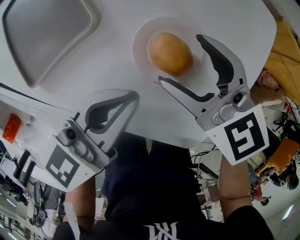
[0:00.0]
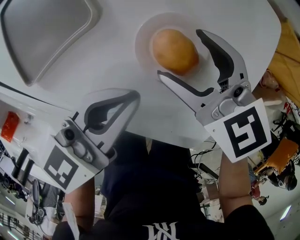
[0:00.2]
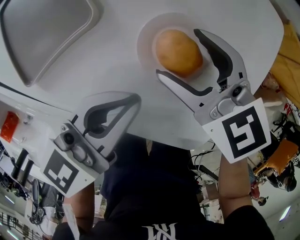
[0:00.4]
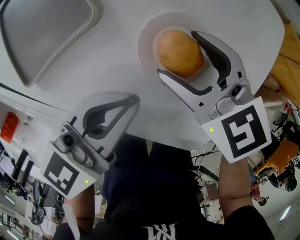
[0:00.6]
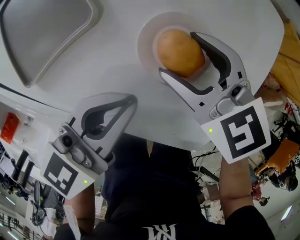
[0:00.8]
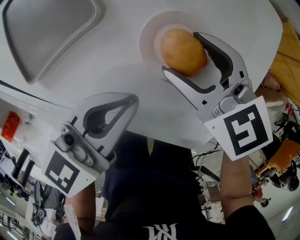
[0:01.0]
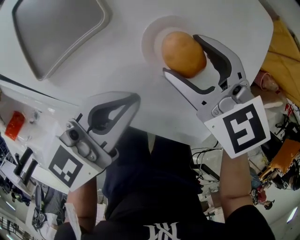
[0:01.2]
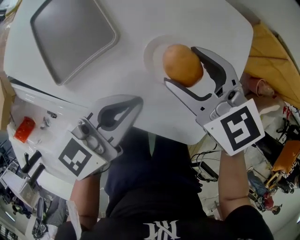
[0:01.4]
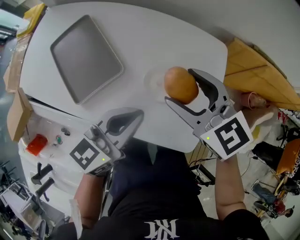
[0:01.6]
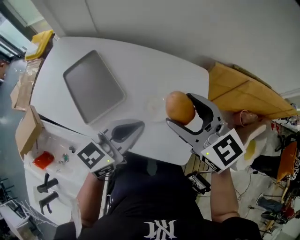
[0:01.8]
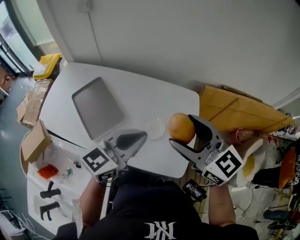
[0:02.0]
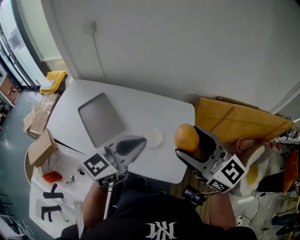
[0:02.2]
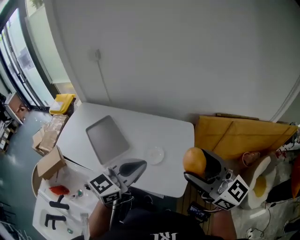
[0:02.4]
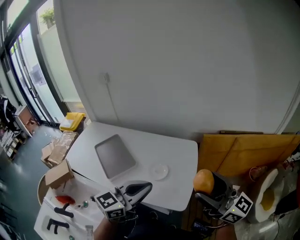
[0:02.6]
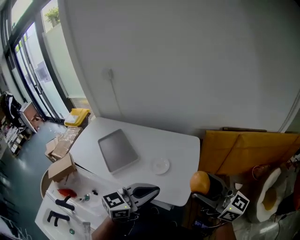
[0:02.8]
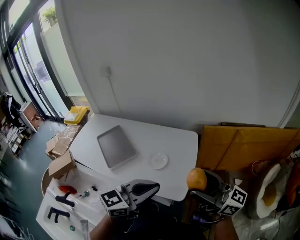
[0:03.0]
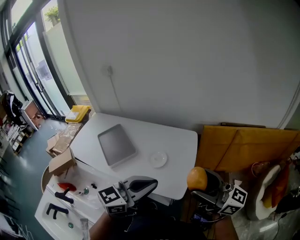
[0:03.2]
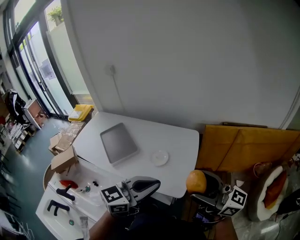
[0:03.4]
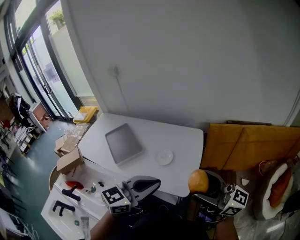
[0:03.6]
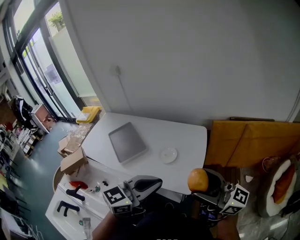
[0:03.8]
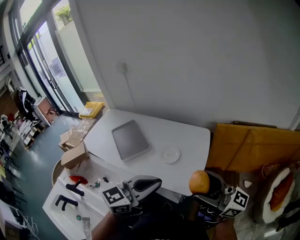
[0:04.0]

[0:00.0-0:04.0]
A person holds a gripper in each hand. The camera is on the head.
0:00.0 to 0:01.4: The grippers both shift upward by about 10 cm.
0:01.4 to 0:02.6: The right gripper goes about 50 cm upward, backward and to the right, and points its fingers about 50 degrees further upward, while the left gripper moves upward and backward, some 35 cm, and swivels about 20 degrees.
0:02.6 to 0:04.0: Both grippers travel together backward, some 10 cm. The right gripper changes its angle by some 20 degrees.

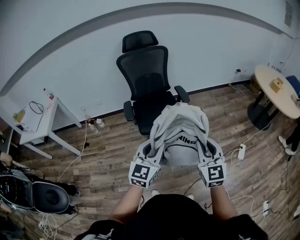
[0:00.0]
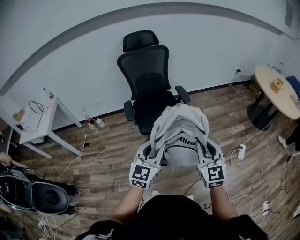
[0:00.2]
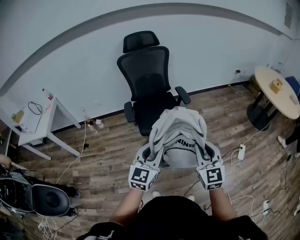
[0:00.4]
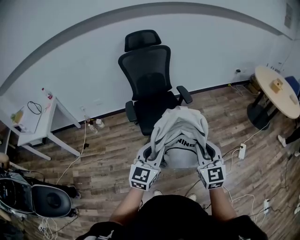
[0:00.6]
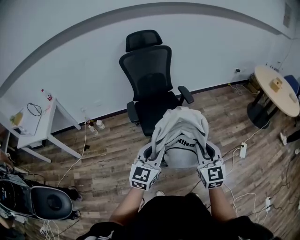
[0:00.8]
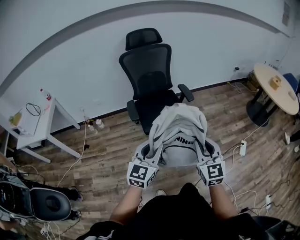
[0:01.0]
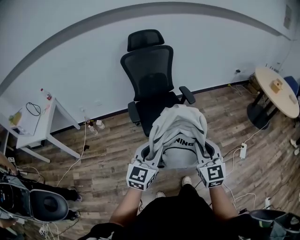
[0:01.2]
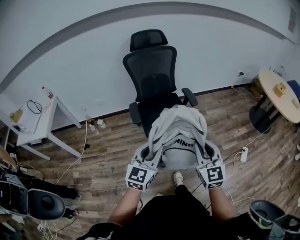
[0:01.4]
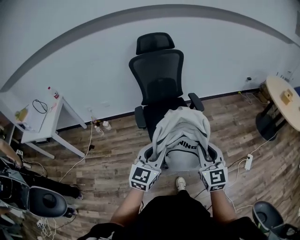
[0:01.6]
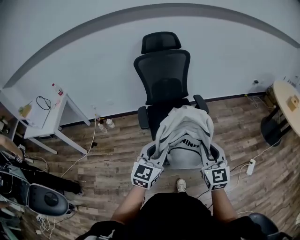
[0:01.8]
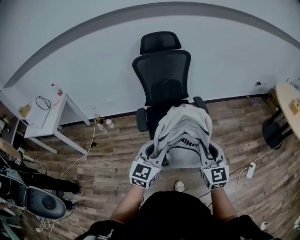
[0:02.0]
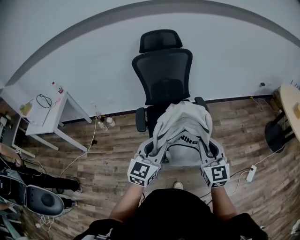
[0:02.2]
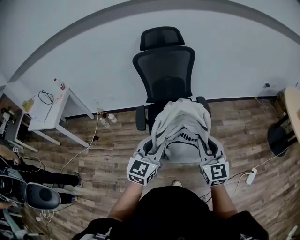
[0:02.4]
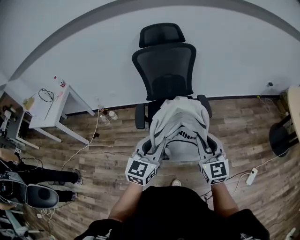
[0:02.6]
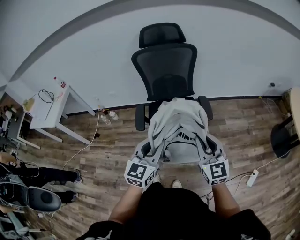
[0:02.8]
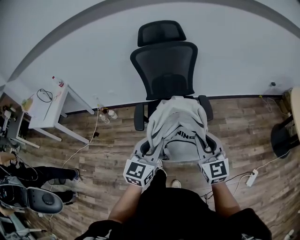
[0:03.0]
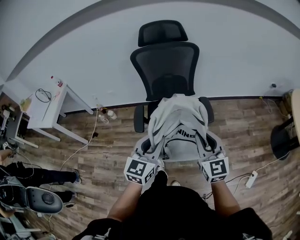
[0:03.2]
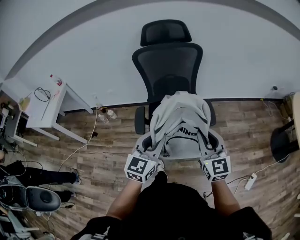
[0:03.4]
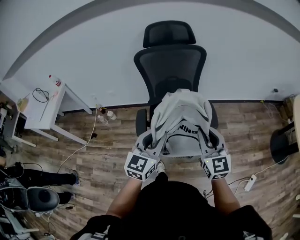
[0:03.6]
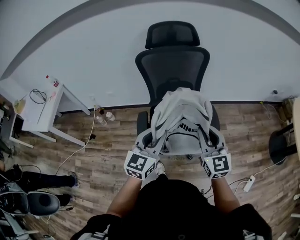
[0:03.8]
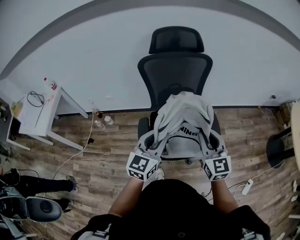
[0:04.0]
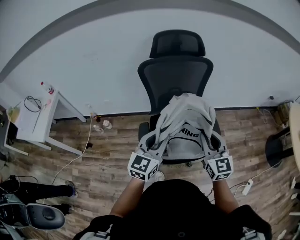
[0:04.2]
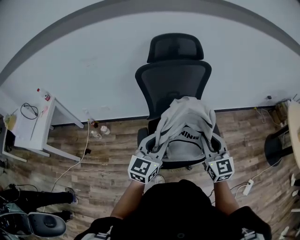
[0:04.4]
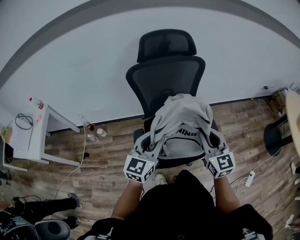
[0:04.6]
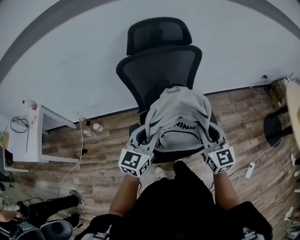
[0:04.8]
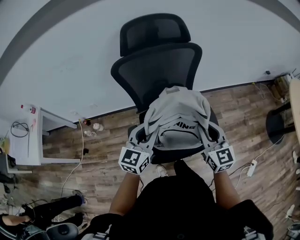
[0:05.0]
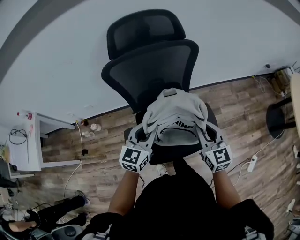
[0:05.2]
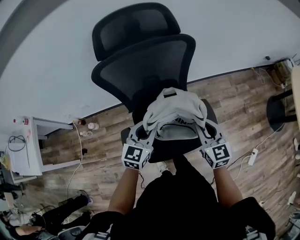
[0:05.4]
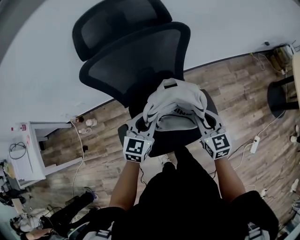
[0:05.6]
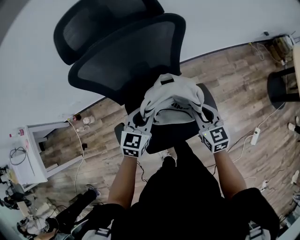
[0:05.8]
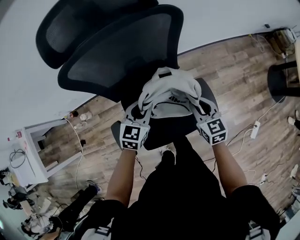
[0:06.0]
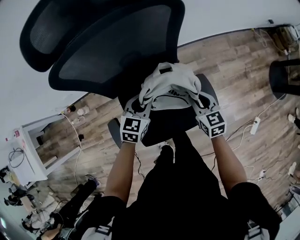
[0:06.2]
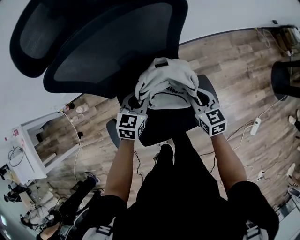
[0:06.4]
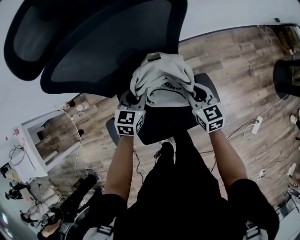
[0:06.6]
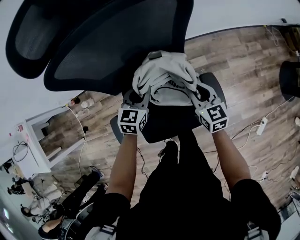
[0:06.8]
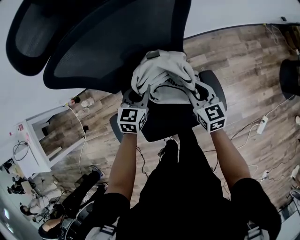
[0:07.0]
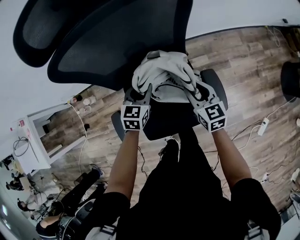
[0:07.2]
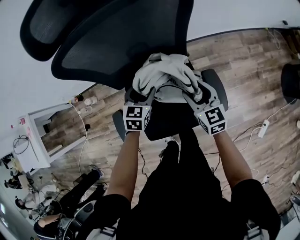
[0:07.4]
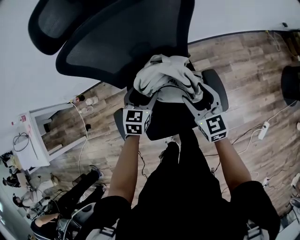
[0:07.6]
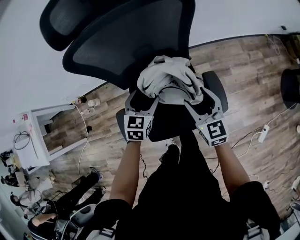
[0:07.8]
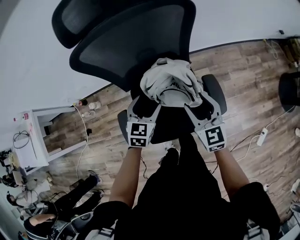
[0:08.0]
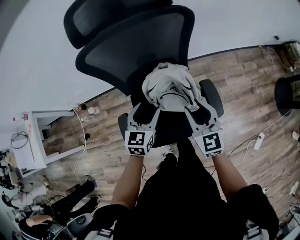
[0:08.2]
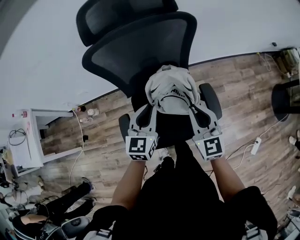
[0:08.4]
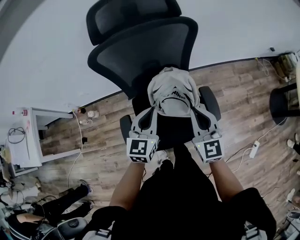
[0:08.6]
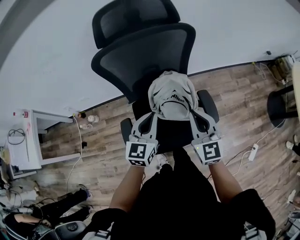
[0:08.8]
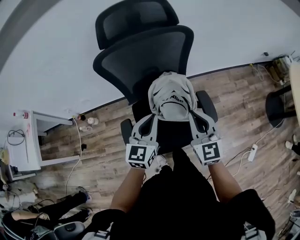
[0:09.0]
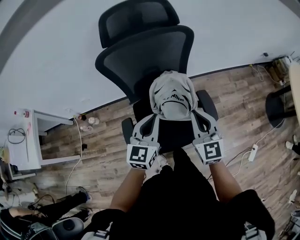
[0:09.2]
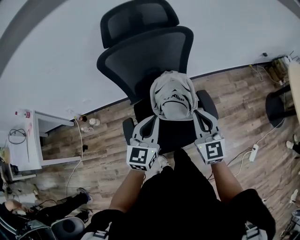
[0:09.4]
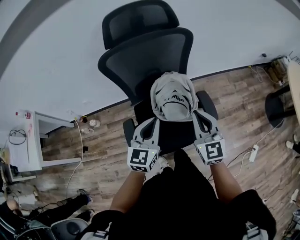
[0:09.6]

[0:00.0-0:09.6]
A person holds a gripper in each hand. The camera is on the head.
0:00.0 to 0:01.6: The grippers both shift to the left and forward by roughly 10 cm.
0:01.6 to 0:03.2: Both grippers travel together forward, roughly 20 cm.
0:03.2 to 0:04.8: The left gripper goes about 25 cm forward and to the left; the right gripper shifts about 20 cm forward.
0:04.8 to 0:06.4: Both grippers travel together downward and forward, roughly 35 cm. The right gripper changes its angle by some 30 degrees. Meanwhile the left gripper swivels roughly 30 degrees.
0:06.4 to 0:08.0: The right gripper shifts some 15 cm upward, backward and to the left, and opens, while the left gripper goes some 5 cm backward, and opens up.
0:08.0 to 0:09.6: Both grippers move upward and backward, approximately 15 cm. The right gripper closes its fingers, while the left gripper swivels about 20 degrees, and closes its fingers.

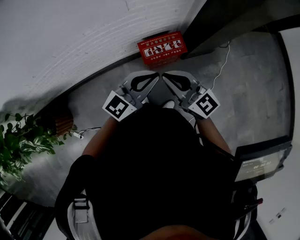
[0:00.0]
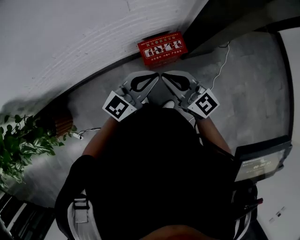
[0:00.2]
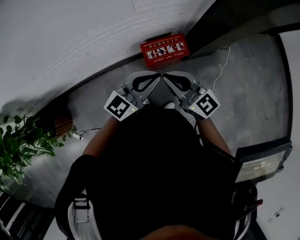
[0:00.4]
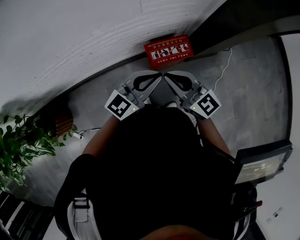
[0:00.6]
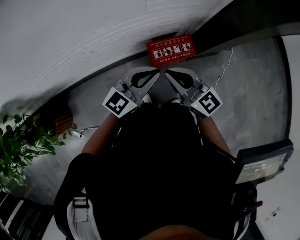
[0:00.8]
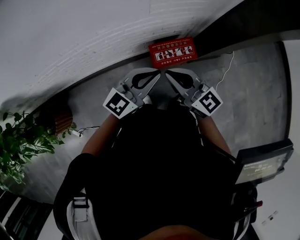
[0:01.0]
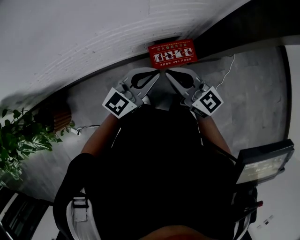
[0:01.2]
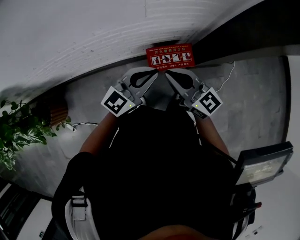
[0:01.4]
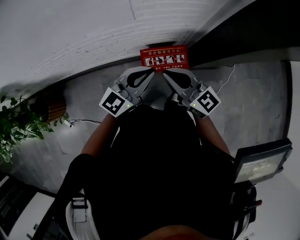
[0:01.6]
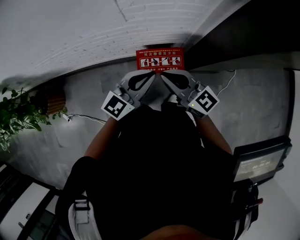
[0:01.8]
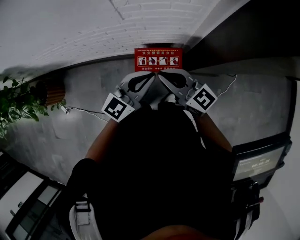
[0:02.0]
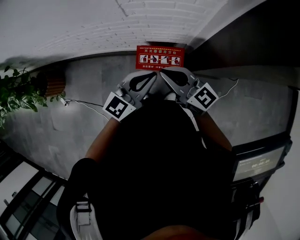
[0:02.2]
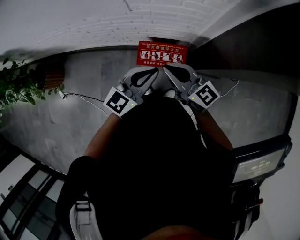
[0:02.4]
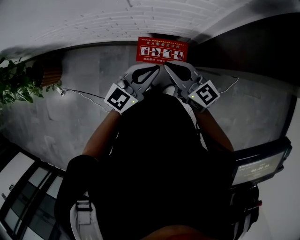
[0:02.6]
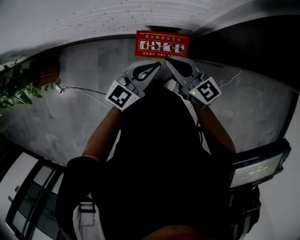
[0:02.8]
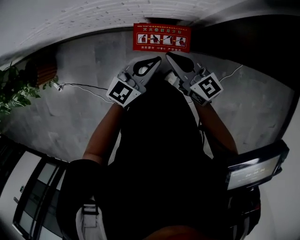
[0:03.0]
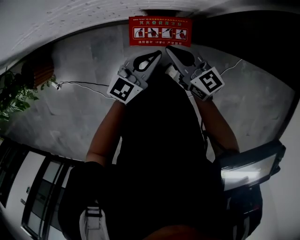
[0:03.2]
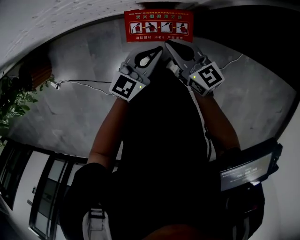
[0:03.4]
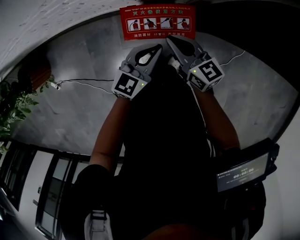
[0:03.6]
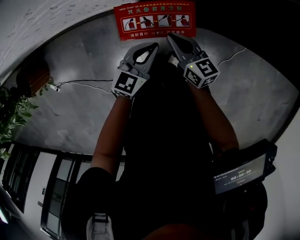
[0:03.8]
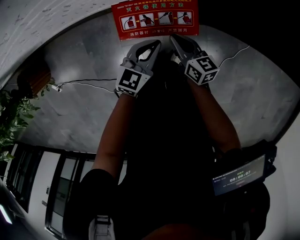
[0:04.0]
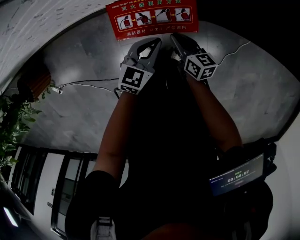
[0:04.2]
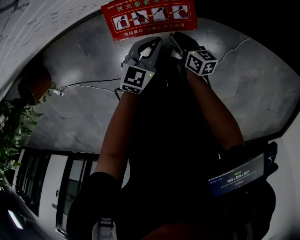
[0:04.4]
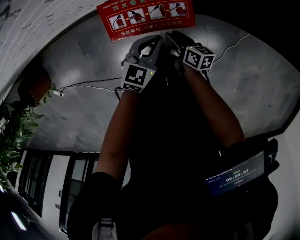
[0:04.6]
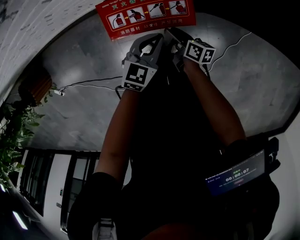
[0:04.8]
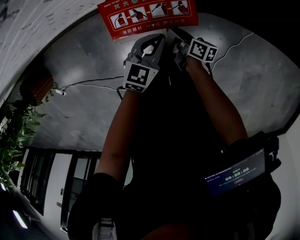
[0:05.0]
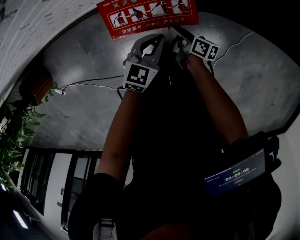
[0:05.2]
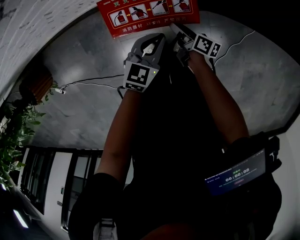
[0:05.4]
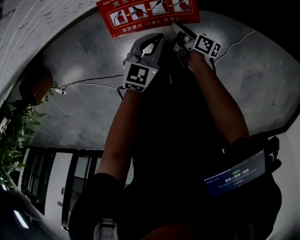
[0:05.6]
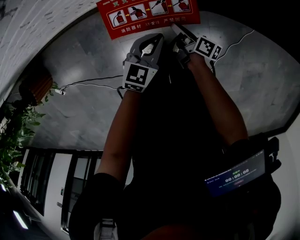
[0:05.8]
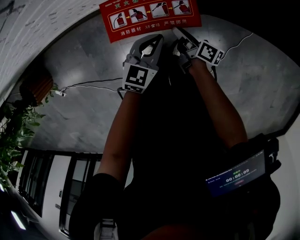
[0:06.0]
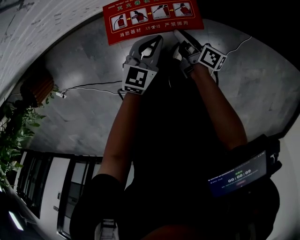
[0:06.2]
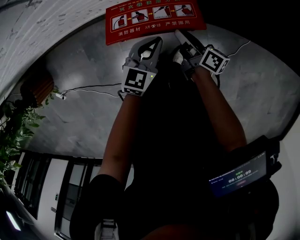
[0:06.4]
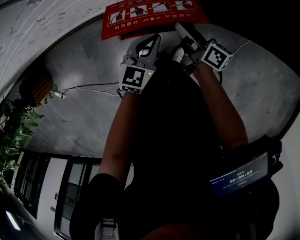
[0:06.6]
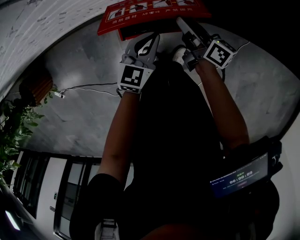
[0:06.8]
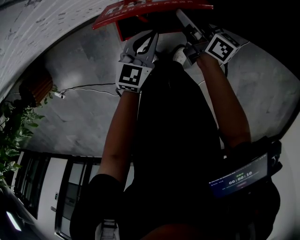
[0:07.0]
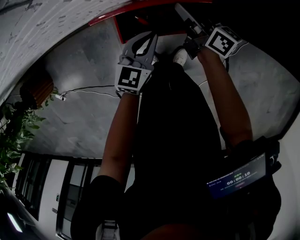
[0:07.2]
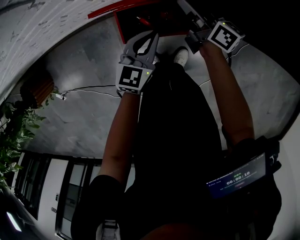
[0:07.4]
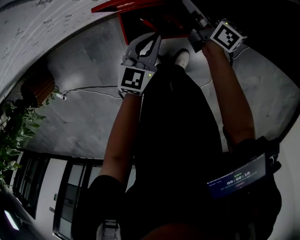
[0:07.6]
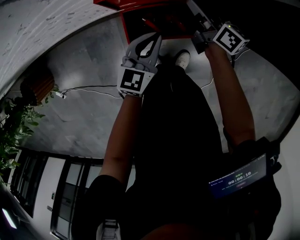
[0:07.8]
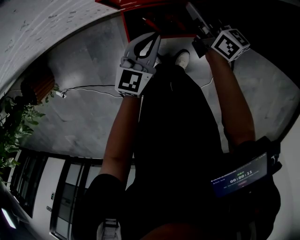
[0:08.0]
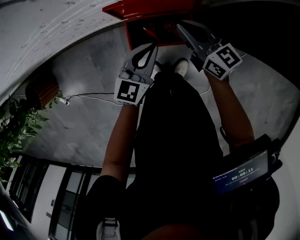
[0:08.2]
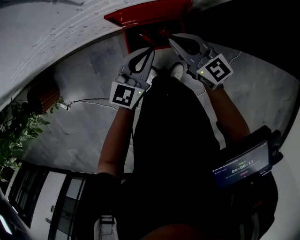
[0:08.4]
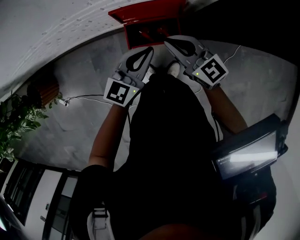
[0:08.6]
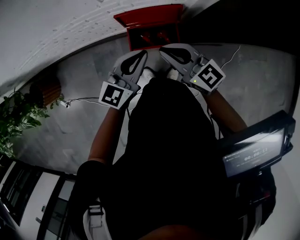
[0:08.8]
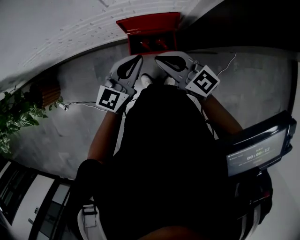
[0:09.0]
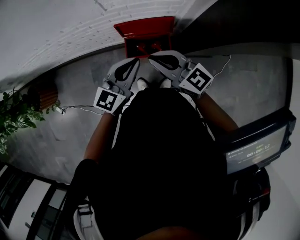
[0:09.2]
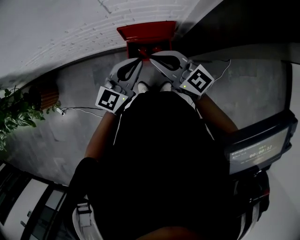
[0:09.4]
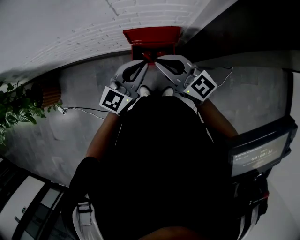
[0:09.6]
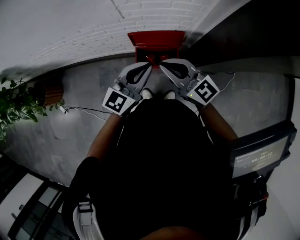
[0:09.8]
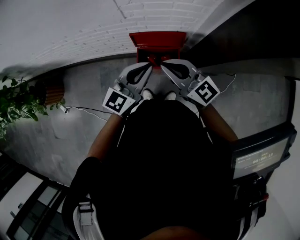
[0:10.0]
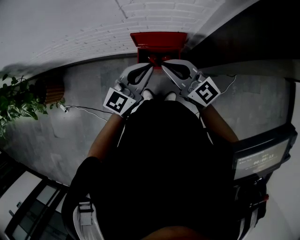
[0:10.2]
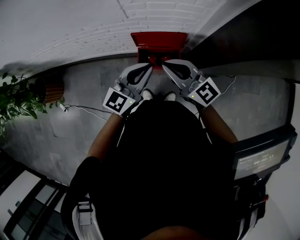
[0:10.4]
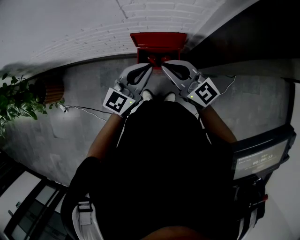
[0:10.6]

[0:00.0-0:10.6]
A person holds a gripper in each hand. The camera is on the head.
0:00.0 to 0:01.6: The two grippers go approximately 10 cm forward.
0:01.6 to 0:03.0: Both grippers travel together downward and to the right, approximately 15 cm.
0:03.0 to 0:04.6: Both grippers travel together downward, approximately 40 cm. The right gripper rotates around the line of its fingers by approximately 40 degrees, clockwise from behind, and opens up, while the left gripper swivels roughly 20 degrees.
0:04.6 to 0:06.0: The right gripper swivels roughly 20 degrees.
0:06.0 to 0:07.6: The right gripper shifts approximately 25 cm forward and upward, and swivels some 30 degrees, while the left gripper heads forward, upward and to the left, covering some 10 cm.
0:07.6 to 0:09.0: The left gripper shifts approximately 35 cm upward. Meanwhile the right gripper shifts about 40 cm upward and backward, and rotates around the line of its fingers by about 40 degrees, counterclockwise from behind.
0:09.0 to 0:10.6: The two grippers go some 5 cm upward.
